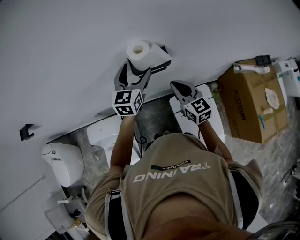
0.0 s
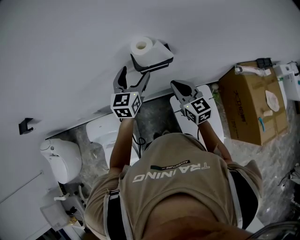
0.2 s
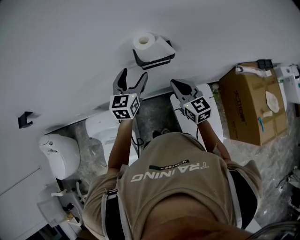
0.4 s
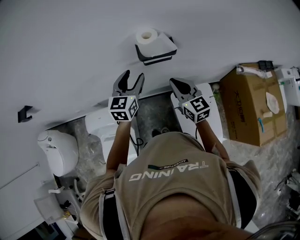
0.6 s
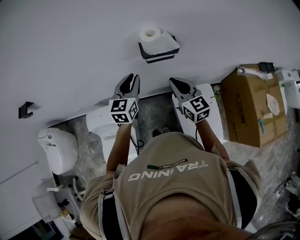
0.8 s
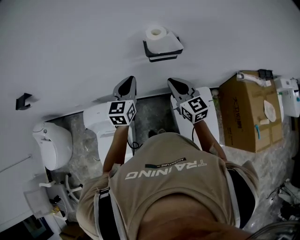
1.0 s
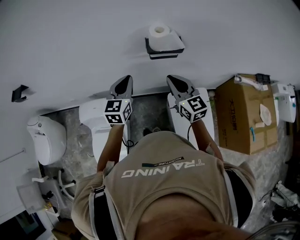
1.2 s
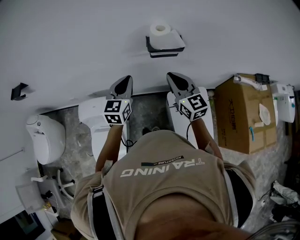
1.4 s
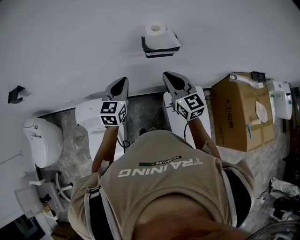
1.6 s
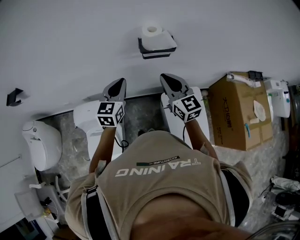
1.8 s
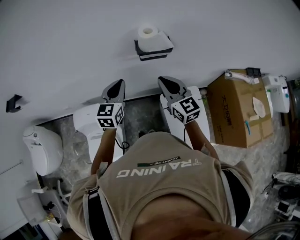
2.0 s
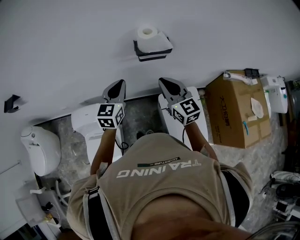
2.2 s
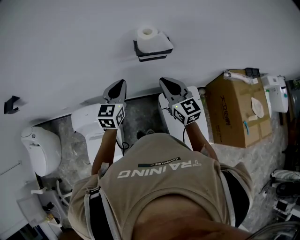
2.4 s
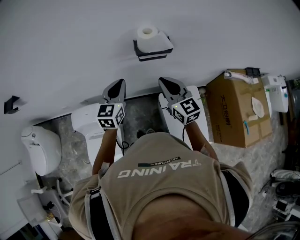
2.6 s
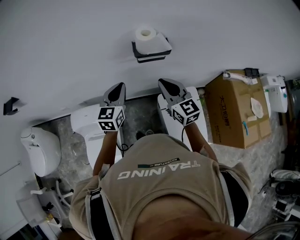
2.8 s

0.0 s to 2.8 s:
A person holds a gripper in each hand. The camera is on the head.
0.0 to 1.4 s: The right gripper is displaced to the left and backward by approximately 10 cm. The left gripper moves backward and to the left, approximately 20 cm, and closes up.
1.4 to 2.8 s: The grippers move only a little.

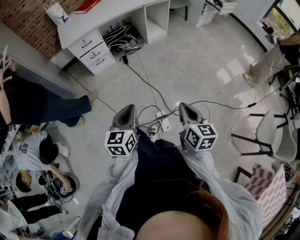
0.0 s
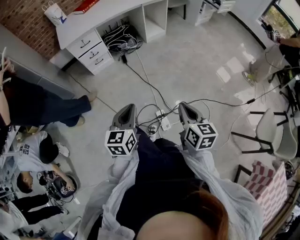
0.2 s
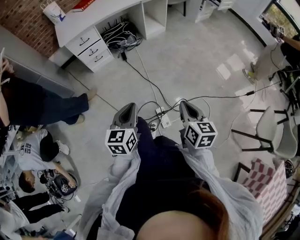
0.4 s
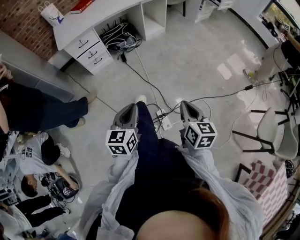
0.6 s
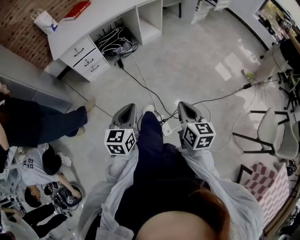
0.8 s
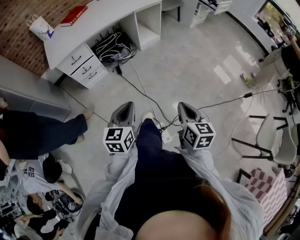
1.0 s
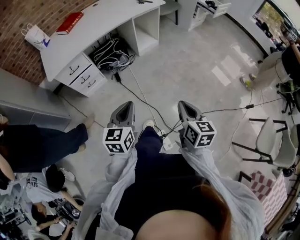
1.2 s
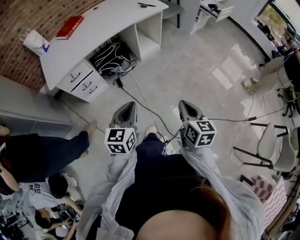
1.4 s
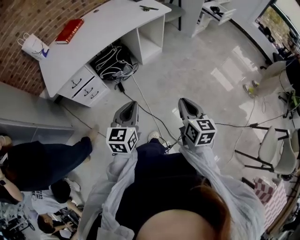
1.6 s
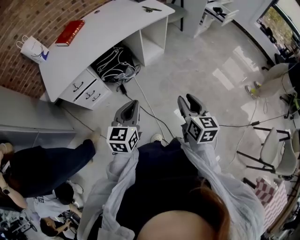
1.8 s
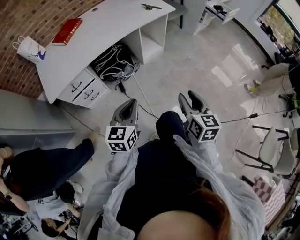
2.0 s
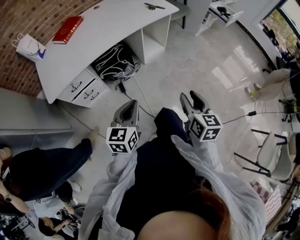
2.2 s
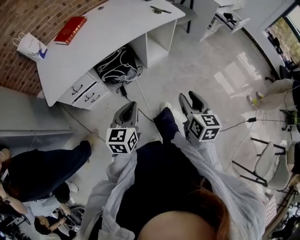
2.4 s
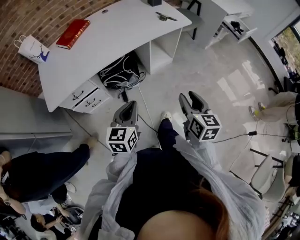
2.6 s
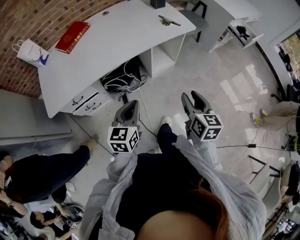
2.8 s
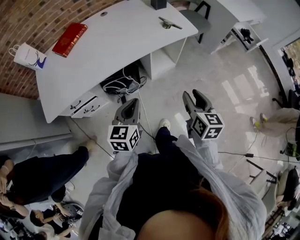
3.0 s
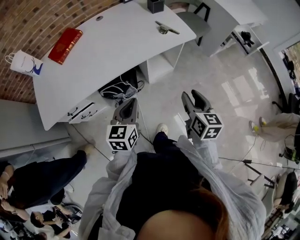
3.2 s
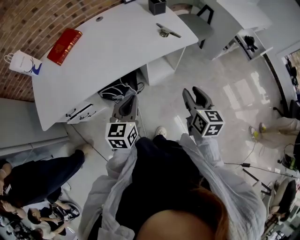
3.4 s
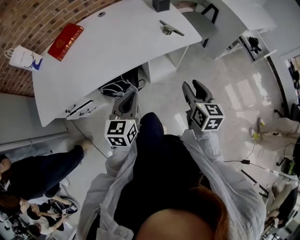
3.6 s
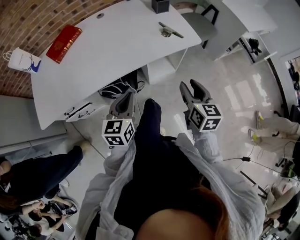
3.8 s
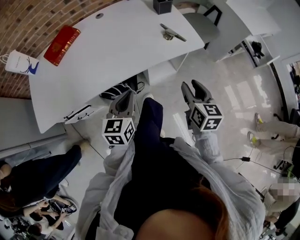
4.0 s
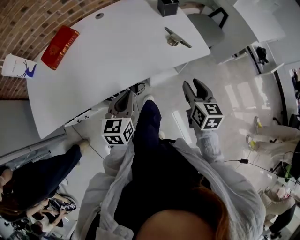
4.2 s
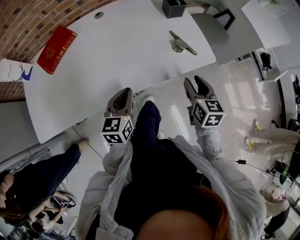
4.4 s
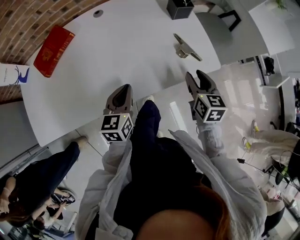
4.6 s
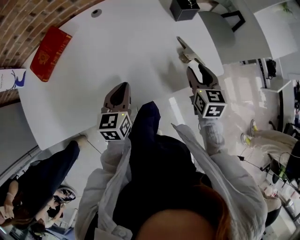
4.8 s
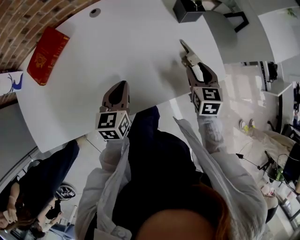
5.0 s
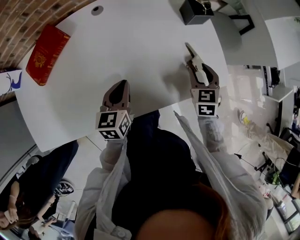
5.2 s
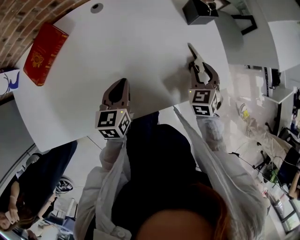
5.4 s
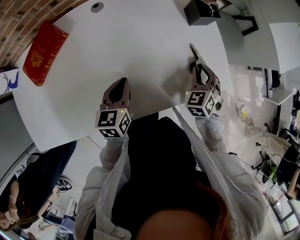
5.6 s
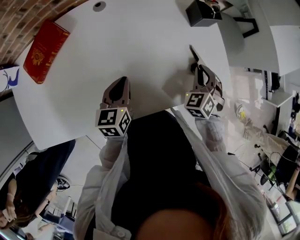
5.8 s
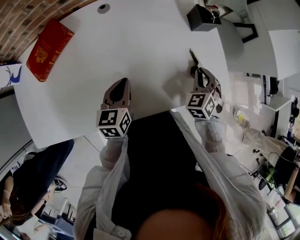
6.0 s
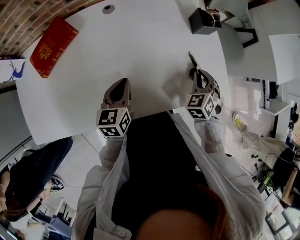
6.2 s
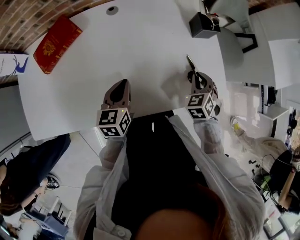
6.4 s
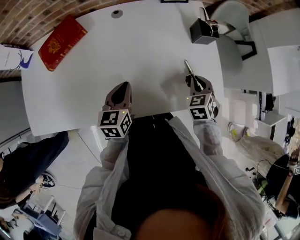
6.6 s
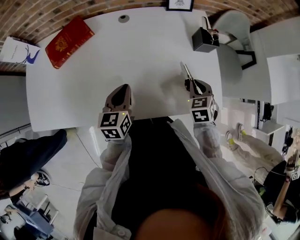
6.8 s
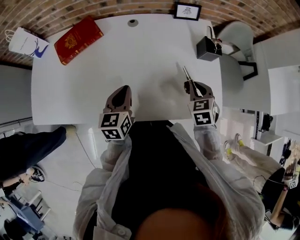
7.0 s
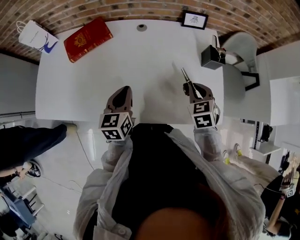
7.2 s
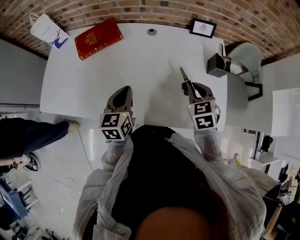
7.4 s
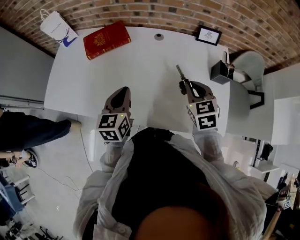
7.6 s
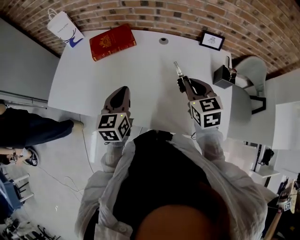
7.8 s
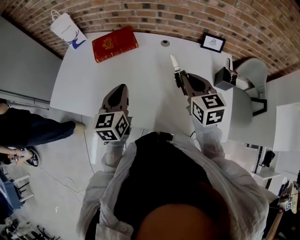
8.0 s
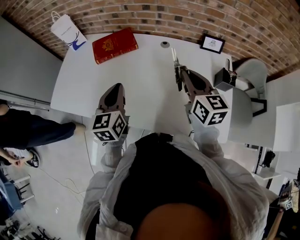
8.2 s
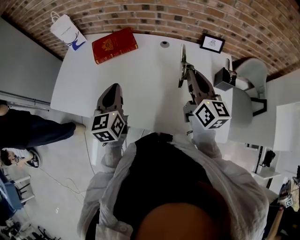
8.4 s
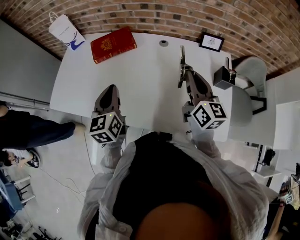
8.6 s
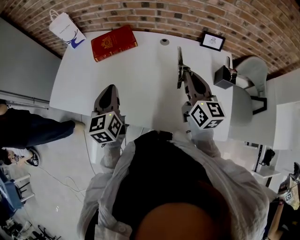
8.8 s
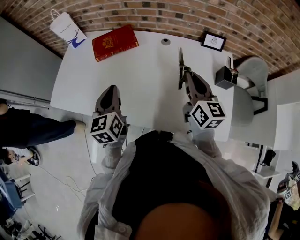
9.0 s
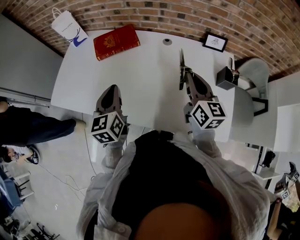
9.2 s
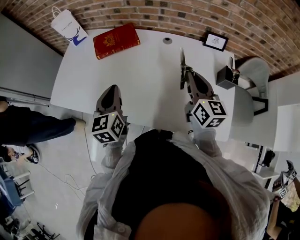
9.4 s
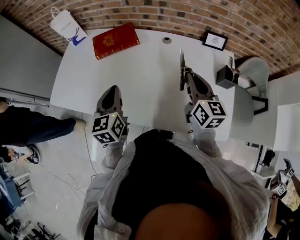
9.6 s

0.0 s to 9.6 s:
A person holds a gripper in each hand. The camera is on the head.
0.0 to 1.6 s: The grippers both shift forward by some 35 cm.
1.6 to 3.2 s: Both grippers travel together forward, approximately 40 cm. The right gripper opens up.
3.2 to 4.8 s: Both grippers move forward, about 35 cm.
4.8 to 6.4 s: The right gripper moves forward, approximately 5 cm, twists some 40 degrees counterclockwise, seen from behind, and closes its fingers; the left gripper shifts by some 5 cm.
6.4 to 8.0 s: The left gripper goes approximately 15 cm upward, and swivels some 30 degrees. The right gripper shifts by about 30 cm, and rotates about 50 degrees.
8.0 to 9.6 s: The right gripper swivels some 20 degrees.

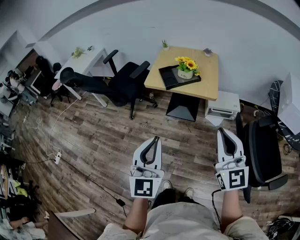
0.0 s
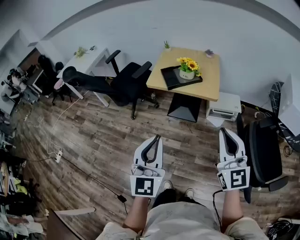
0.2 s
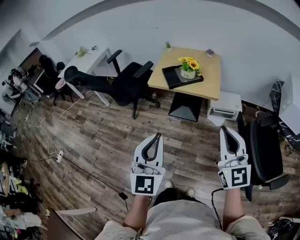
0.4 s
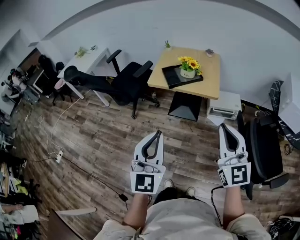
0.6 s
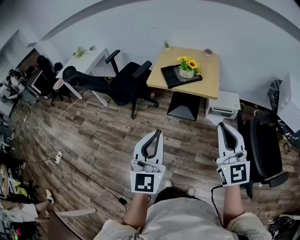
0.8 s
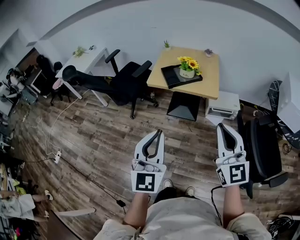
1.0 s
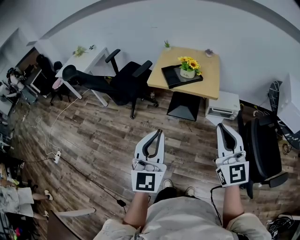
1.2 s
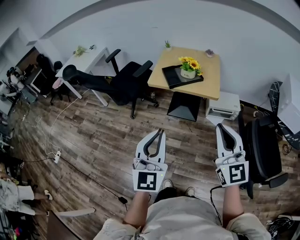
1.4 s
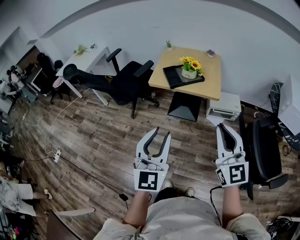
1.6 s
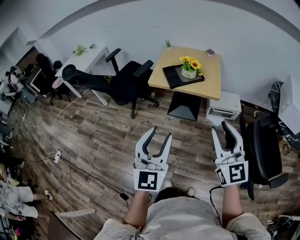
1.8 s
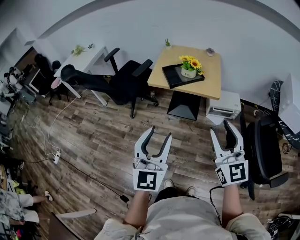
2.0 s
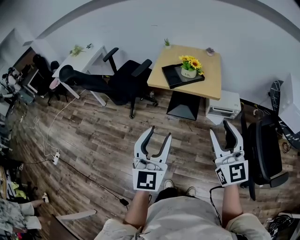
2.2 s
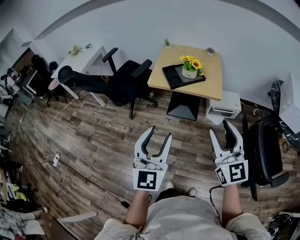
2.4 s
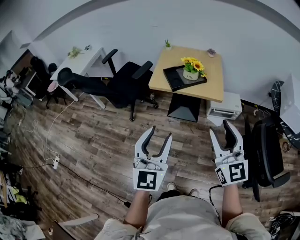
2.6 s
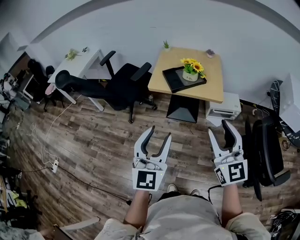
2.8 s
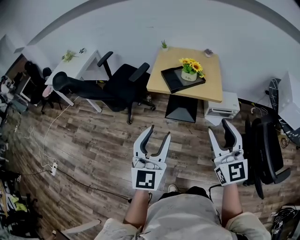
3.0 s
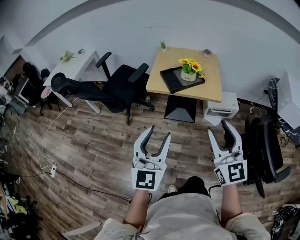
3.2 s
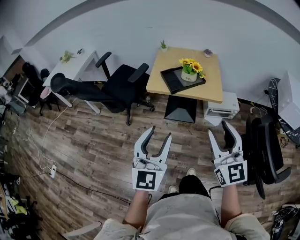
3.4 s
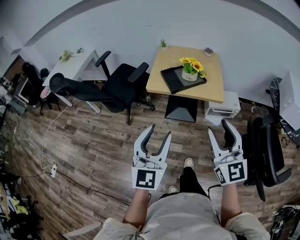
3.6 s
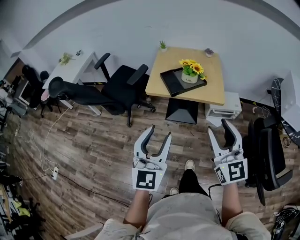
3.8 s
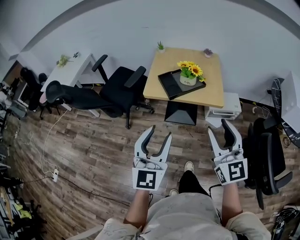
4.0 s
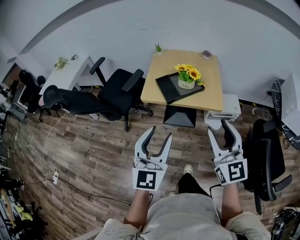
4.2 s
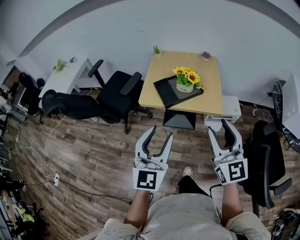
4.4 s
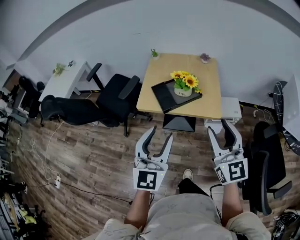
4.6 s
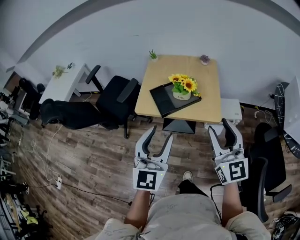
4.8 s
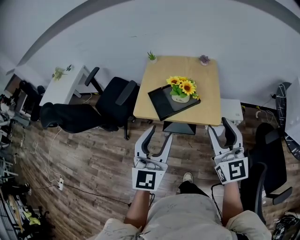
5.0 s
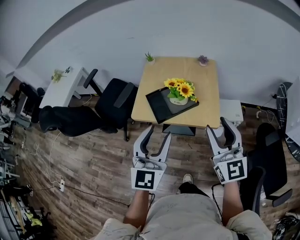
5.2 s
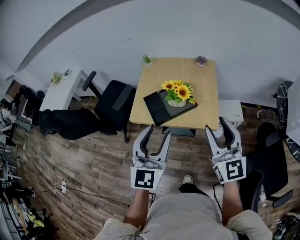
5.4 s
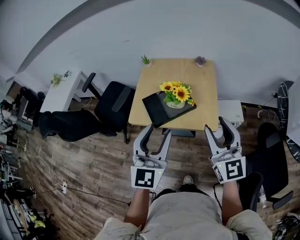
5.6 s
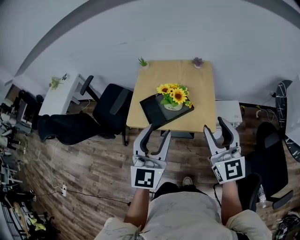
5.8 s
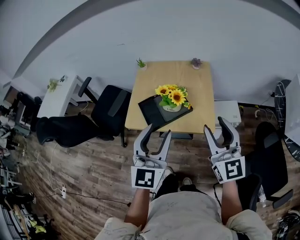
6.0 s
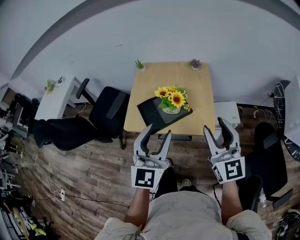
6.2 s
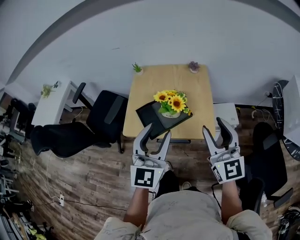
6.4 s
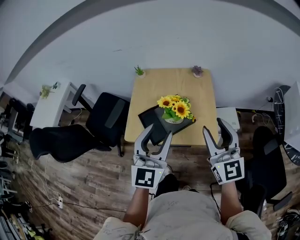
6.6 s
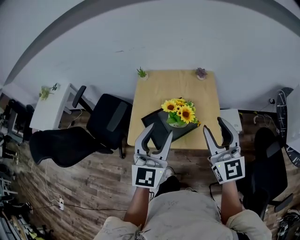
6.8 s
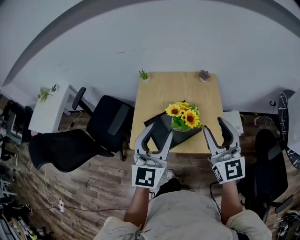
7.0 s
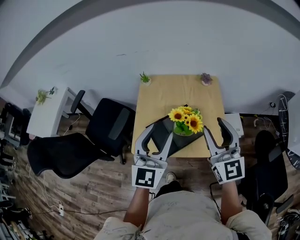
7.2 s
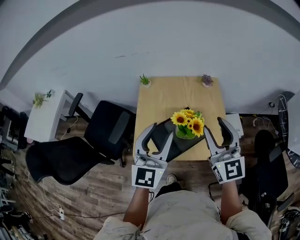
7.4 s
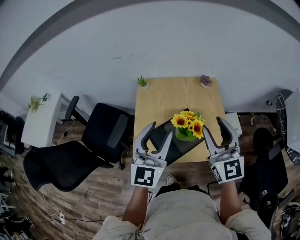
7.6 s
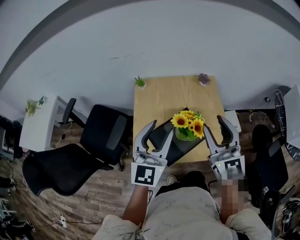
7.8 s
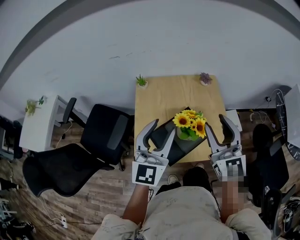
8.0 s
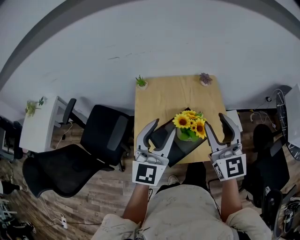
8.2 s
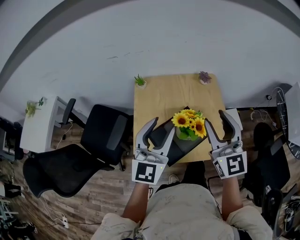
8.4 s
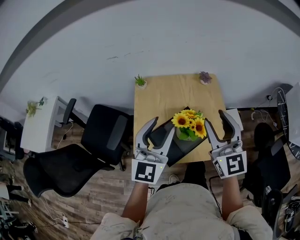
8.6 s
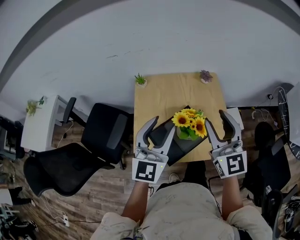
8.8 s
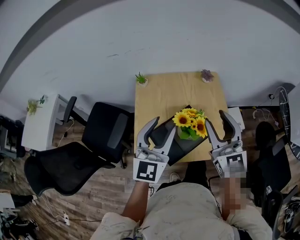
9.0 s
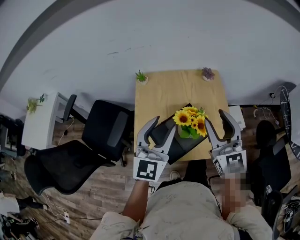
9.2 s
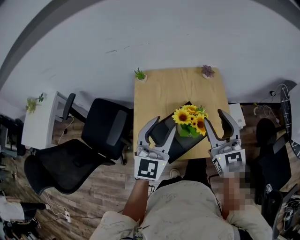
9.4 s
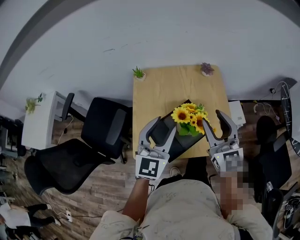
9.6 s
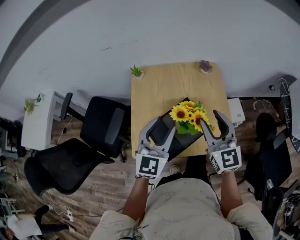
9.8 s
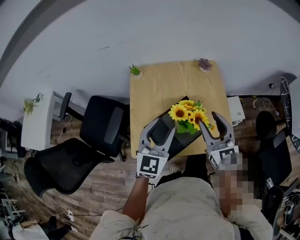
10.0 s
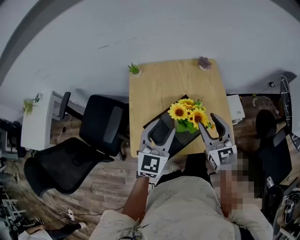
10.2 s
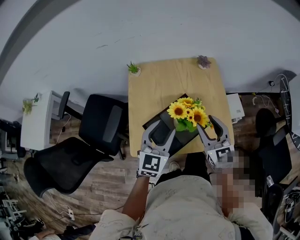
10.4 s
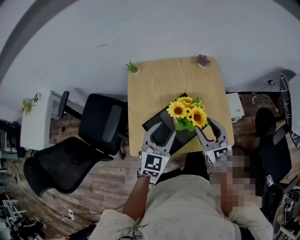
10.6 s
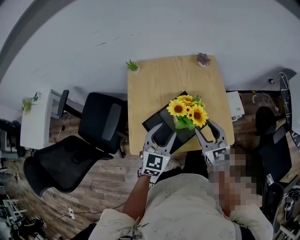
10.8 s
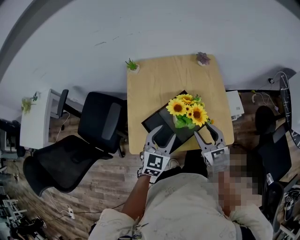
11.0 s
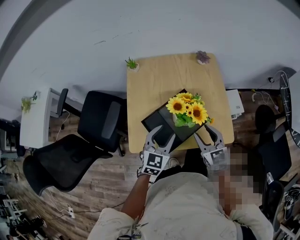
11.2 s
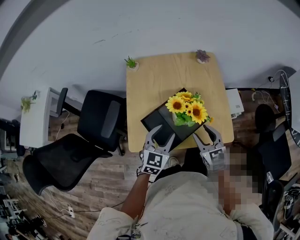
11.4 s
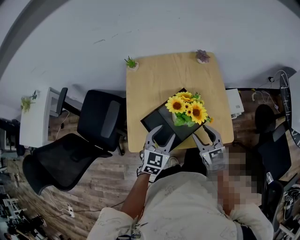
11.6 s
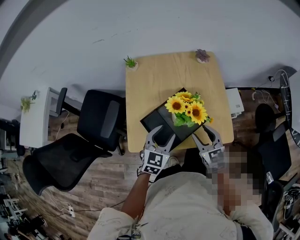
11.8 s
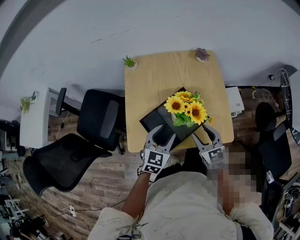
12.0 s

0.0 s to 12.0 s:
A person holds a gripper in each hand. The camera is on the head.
0.0 to 1.6 s: The left gripper opens its fingers.
1.6 to 3.0 s: The left gripper goes approximately 10 cm forward and to the left. The right gripper heads to the left and forward, covering roughly 10 cm, and opens its fingers.
3.0 to 4.4 s: The grippers both shift forward by approximately 15 cm.
4.4 to 6.0 s: Both grippers travel together forward and to the right, about 20 cm.
6.0 to 7.6 s: Both grippers travel together forward and to the left, some 25 cm.
7.6 to 9.0 s: The grippers stay close to where they were, moving slightly.
9.0 to 10.4 s: Both grippers move downward, some 15 cm.
10.4 to 12.0 s: Both grippers move downward, roughly 10 cm.
